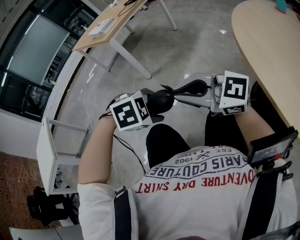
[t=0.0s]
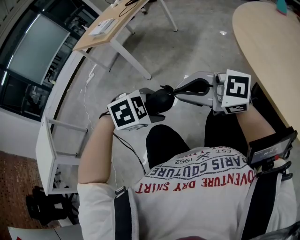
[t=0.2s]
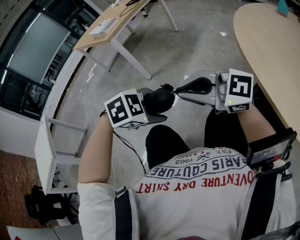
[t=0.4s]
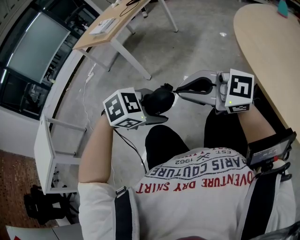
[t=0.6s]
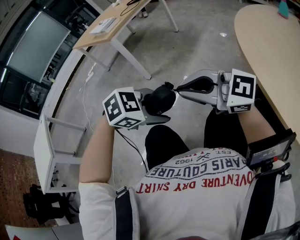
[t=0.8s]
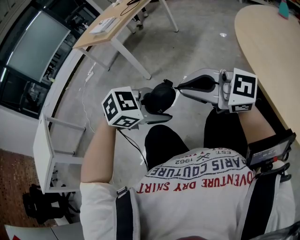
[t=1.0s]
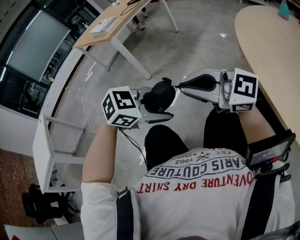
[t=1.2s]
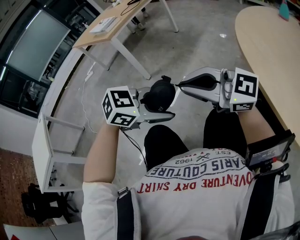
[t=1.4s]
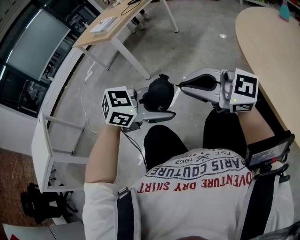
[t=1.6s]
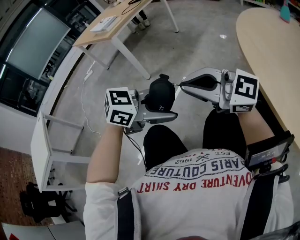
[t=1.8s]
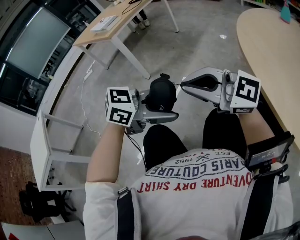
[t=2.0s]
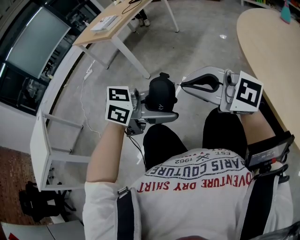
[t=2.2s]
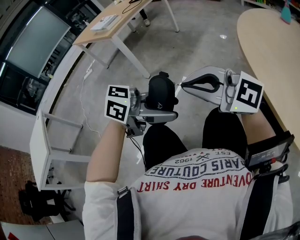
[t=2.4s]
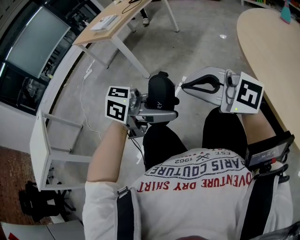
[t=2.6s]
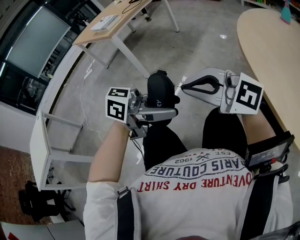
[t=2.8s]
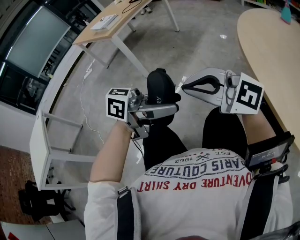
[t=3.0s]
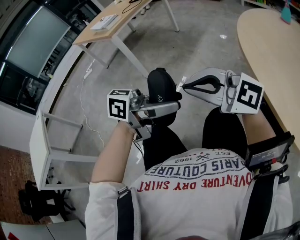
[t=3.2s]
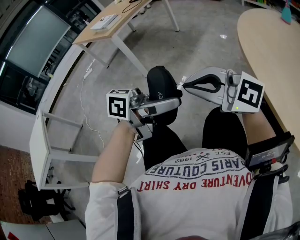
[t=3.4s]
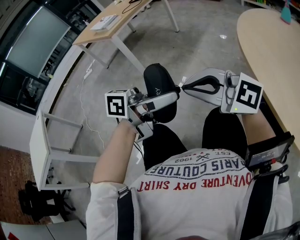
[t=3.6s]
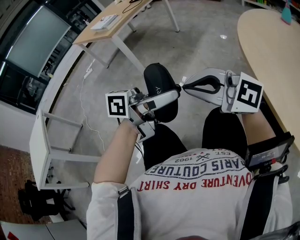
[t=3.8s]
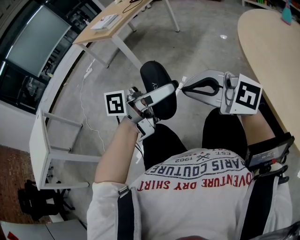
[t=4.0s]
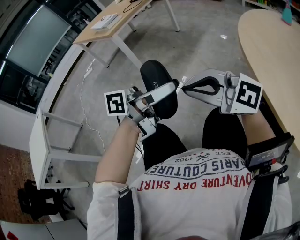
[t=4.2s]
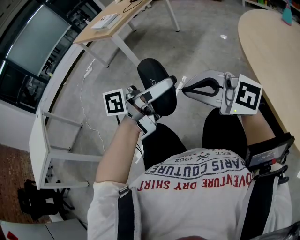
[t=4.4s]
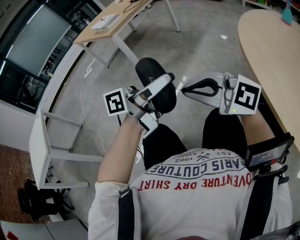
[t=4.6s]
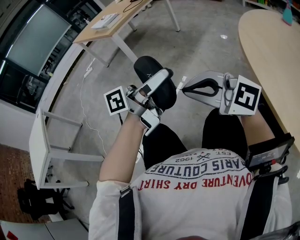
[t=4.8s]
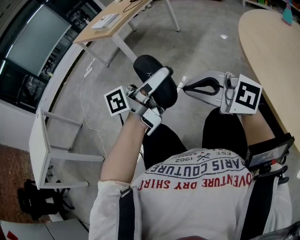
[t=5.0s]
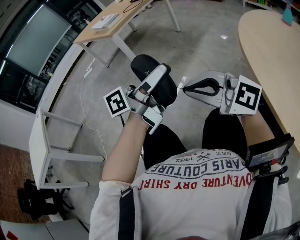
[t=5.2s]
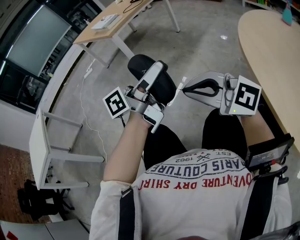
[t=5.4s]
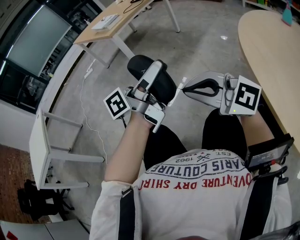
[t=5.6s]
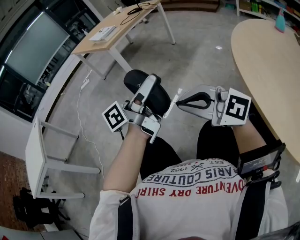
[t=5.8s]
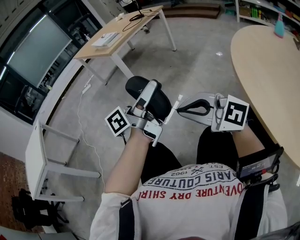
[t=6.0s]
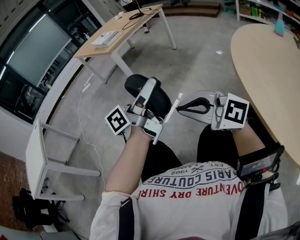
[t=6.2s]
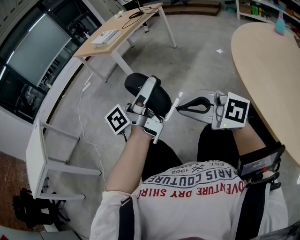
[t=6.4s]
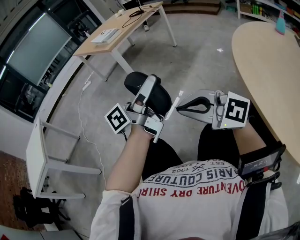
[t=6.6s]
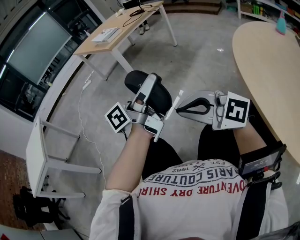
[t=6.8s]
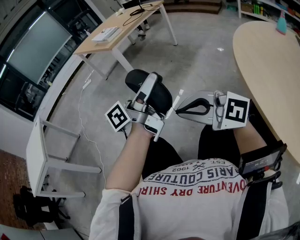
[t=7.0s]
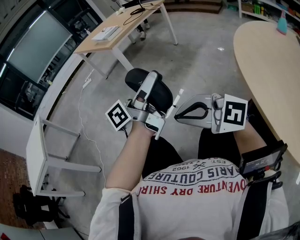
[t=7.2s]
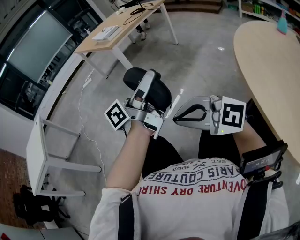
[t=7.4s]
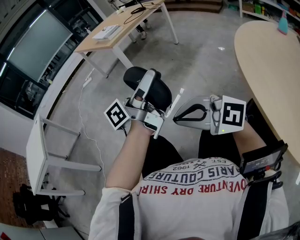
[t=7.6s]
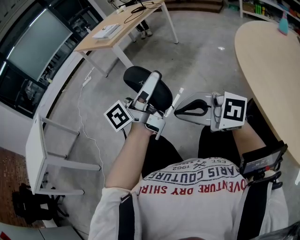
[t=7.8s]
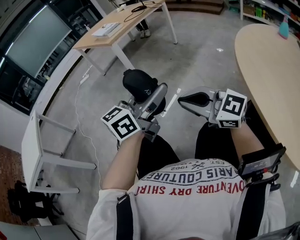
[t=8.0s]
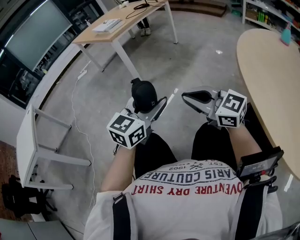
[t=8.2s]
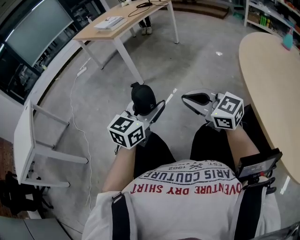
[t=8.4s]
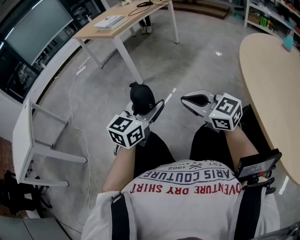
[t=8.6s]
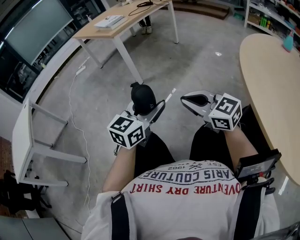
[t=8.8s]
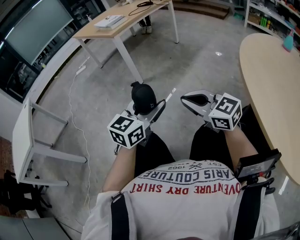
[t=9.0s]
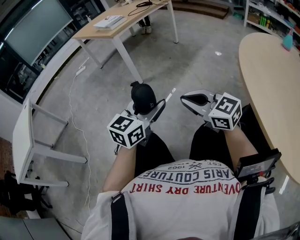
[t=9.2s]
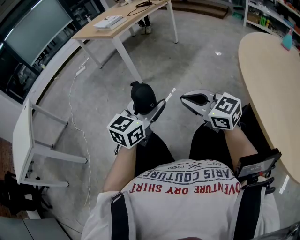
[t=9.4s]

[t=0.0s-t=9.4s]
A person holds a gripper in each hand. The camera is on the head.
t=0.0s to t=1.6s: The left gripper is displaced upward by some 5 cm, and tips its fingers upward by about 40 degrees.
t=1.6s to t=3.2s: The left gripper tips its fingers upward by approximately 30 degrees.
t=3.2s to t=4.8s: The left gripper changes place by about 10 cm, and turns by about 30 degrees.
t=4.8s to t=6.2s: The grippers make only small movements.
t=6.2s to t=7.8s: The grippers make only small movements.
t=7.8s to t=9.4s: The right gripper heads forward and downward, covering approximately 10 cm, and changes its angle by about 30 degrees. Meanwhile the left gripper goes approximately 10 cm downward, and twists some 50 degrees clockwise, seen from behind.

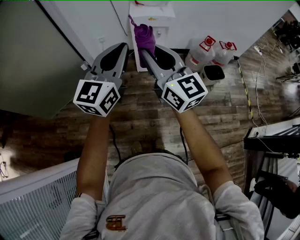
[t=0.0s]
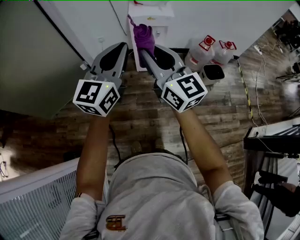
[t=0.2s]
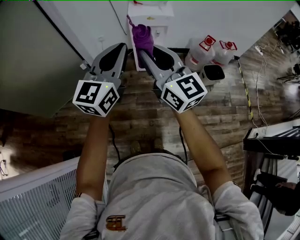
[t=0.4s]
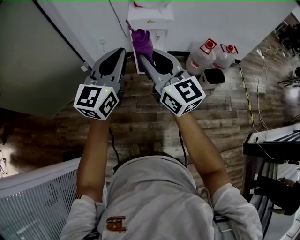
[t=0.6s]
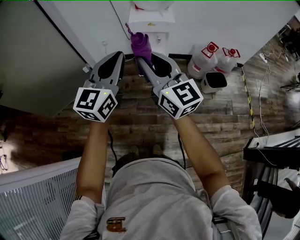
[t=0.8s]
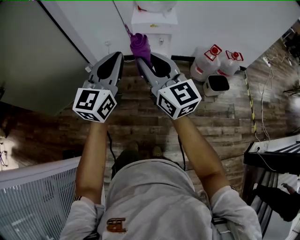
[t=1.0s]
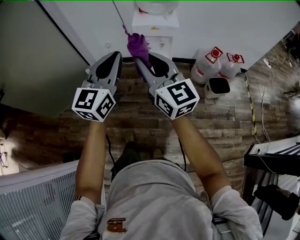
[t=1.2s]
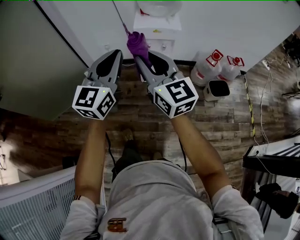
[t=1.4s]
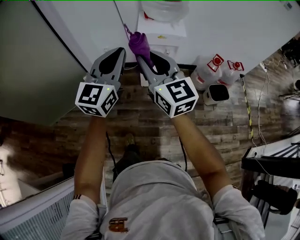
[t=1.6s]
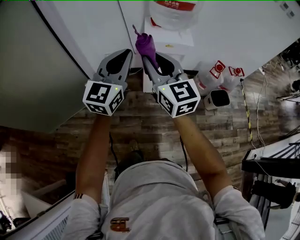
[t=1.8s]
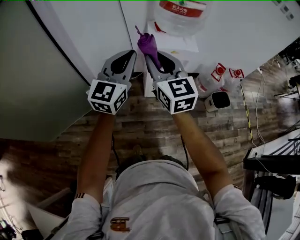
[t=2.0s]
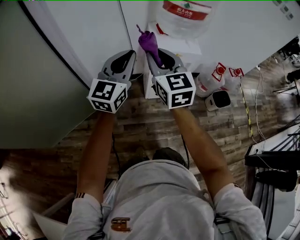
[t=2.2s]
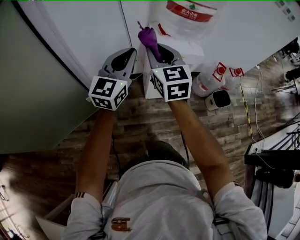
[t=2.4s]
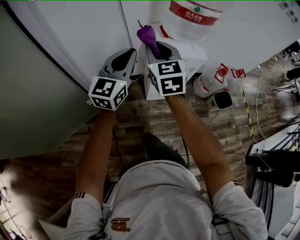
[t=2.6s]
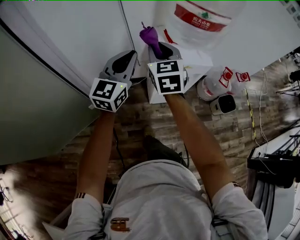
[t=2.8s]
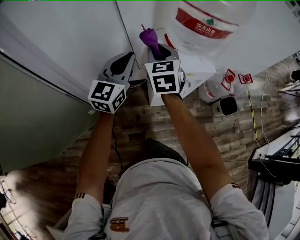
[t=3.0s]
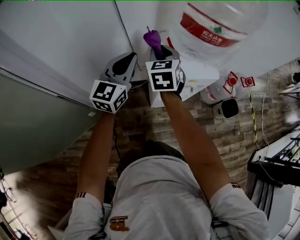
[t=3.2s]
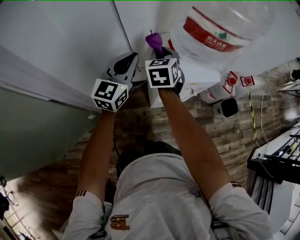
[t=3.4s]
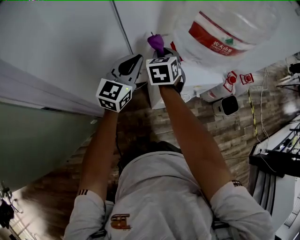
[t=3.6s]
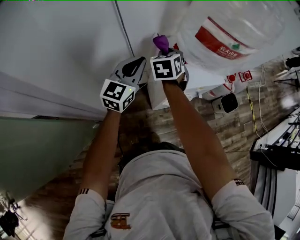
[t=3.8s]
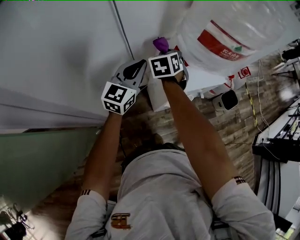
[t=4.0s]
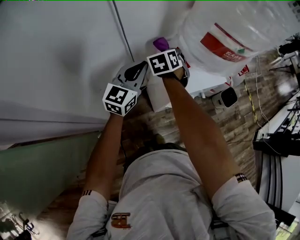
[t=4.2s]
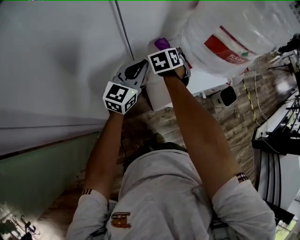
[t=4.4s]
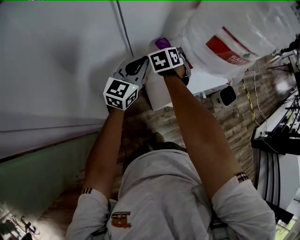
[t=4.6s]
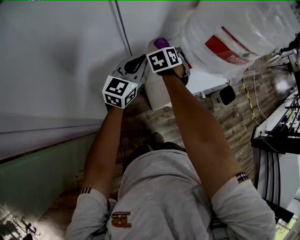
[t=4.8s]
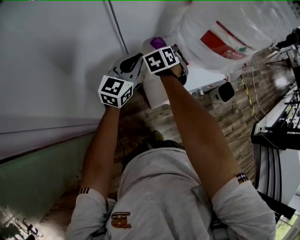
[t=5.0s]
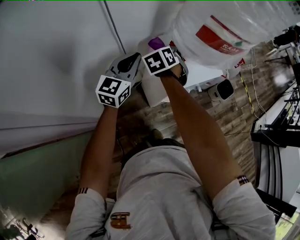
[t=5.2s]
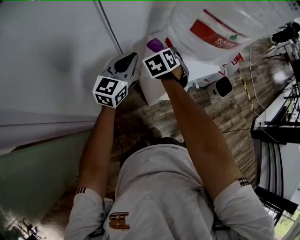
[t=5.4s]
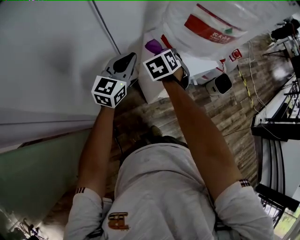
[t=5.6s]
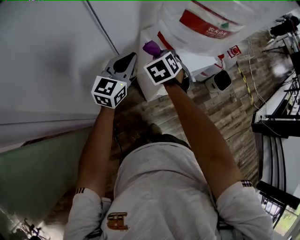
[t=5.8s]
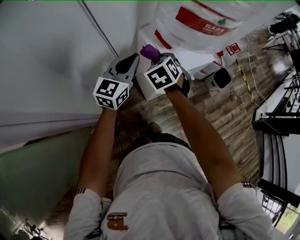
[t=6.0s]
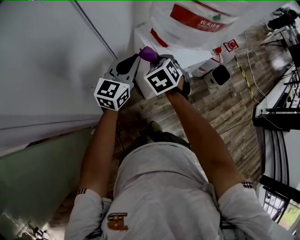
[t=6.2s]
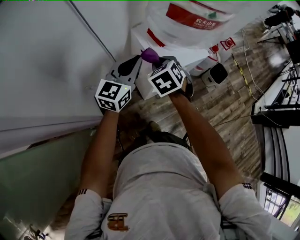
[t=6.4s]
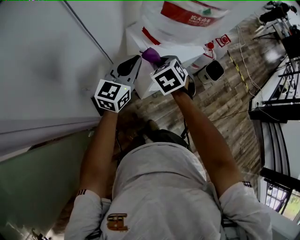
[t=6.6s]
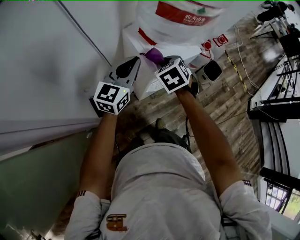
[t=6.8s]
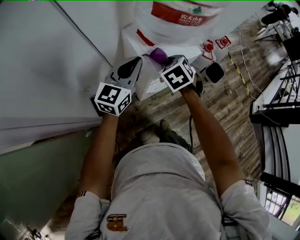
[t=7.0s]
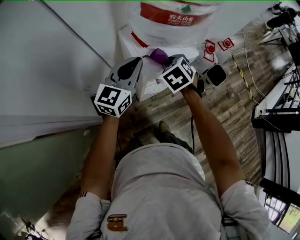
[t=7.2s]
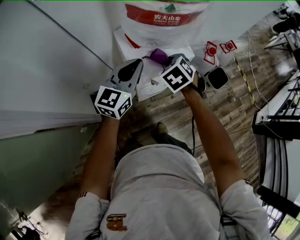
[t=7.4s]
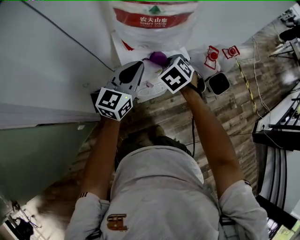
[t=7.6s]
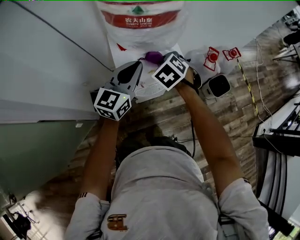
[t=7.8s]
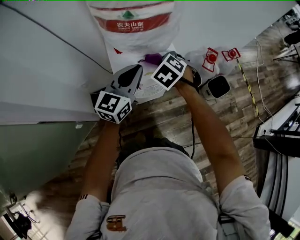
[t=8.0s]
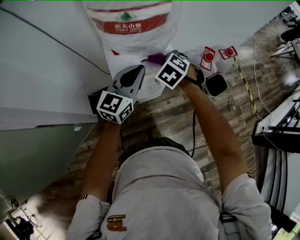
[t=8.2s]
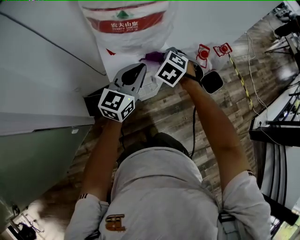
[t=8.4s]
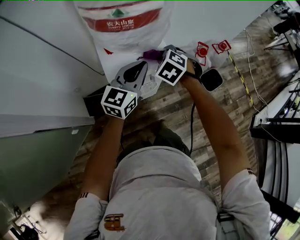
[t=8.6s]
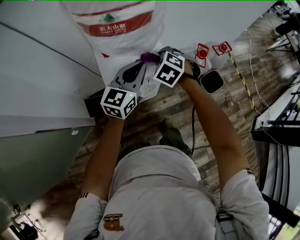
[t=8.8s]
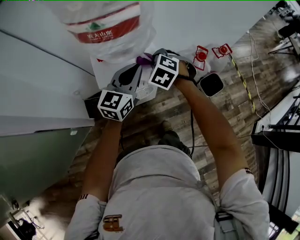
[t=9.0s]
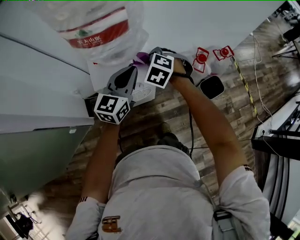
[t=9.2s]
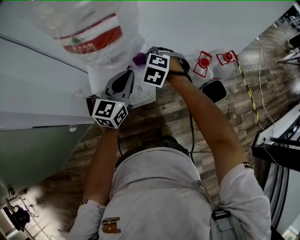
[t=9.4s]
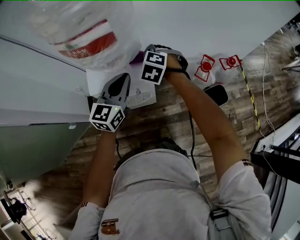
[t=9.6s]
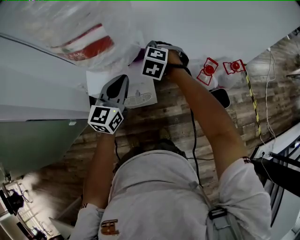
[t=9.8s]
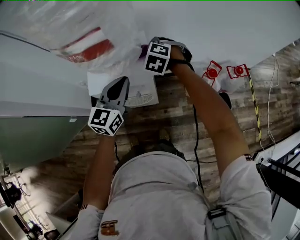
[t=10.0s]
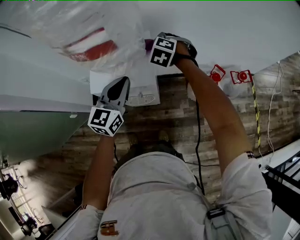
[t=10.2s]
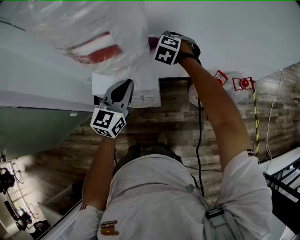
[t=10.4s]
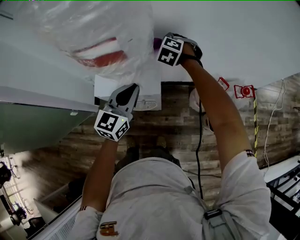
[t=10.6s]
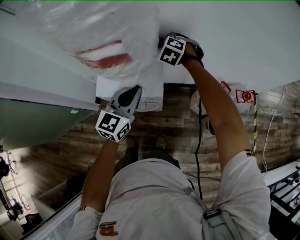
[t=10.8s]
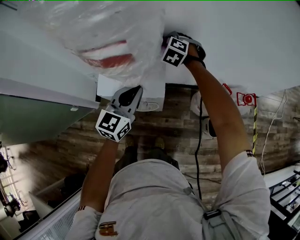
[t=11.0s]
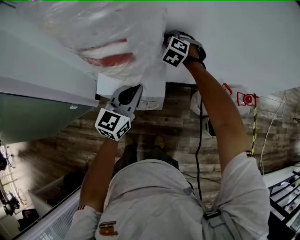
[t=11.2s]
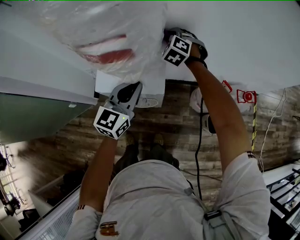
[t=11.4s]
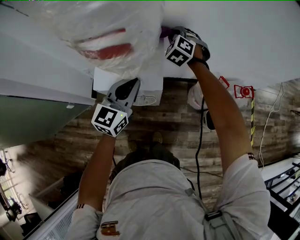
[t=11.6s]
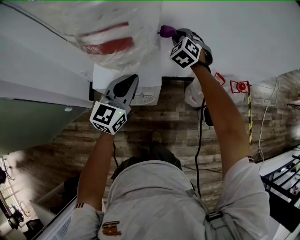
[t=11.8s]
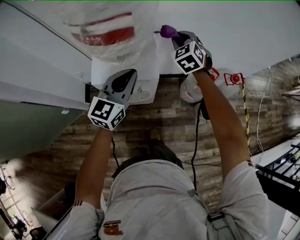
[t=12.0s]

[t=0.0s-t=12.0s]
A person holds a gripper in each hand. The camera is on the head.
t=0.0s to t=1.6s: The two grippers go approximately 15 cm forward.
t=1.6s to t=3.0s: The left gripper goes about 35 cm forward and to the left; the right gripper travels forward by approximately 40 cm, and swivels roughly 40 degrees.
t=3.0s to t=4.4s: The left gripper shifts by approximately 15 cm; the right gripper shifts by roughly 25 cm, and rotates roughly 40 degrees.
t=4.4s to t=6.0s: The left gripper shifts about 5 cm to the right; the right gripper shifts about 15 cm backward and to the right.
t=6.0s to t=7.6s: Both grippers move to the right, approximately 20 cm.
t=7.6s to t=9.0s: The left gripper heads to the right, covering some 10 cm. Meanwhile the right gripper moves to the right, approximately 5 cm, and turns by approximately 20 degrees.
t=9.0s to t=10.4s: The left gripper shifts by about 5 cm, and swivels some 20 degrees, while the right gripper is displaced forward by some 20 cm, and changes its angle by roughly 20 degrees.
t=10.4s to t=12.0s: The right gripper goes roughly 10 cm upward and to the right, and changes its angle by about 30 degrees.

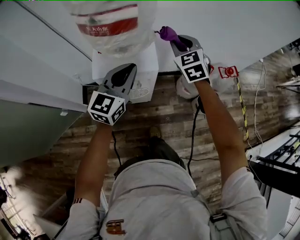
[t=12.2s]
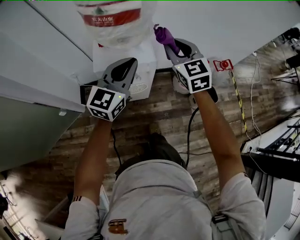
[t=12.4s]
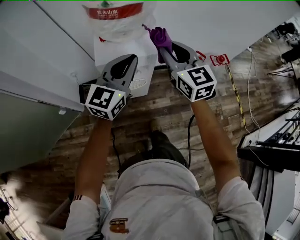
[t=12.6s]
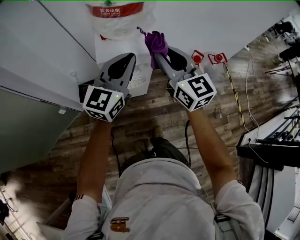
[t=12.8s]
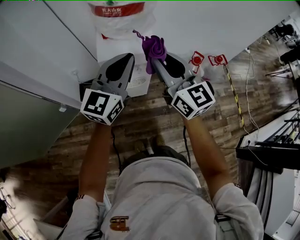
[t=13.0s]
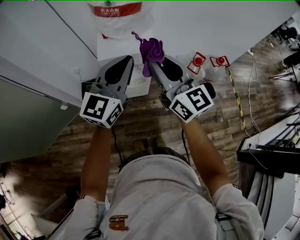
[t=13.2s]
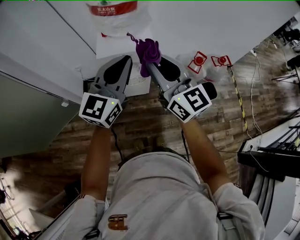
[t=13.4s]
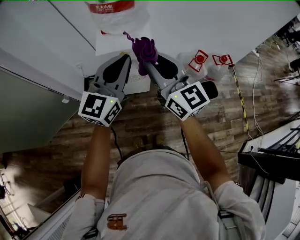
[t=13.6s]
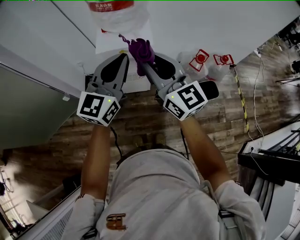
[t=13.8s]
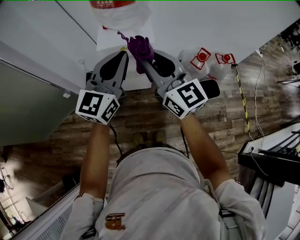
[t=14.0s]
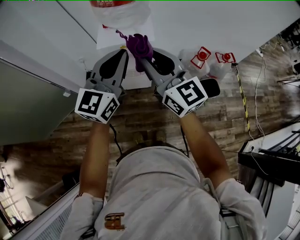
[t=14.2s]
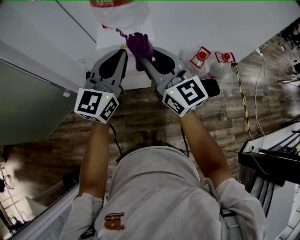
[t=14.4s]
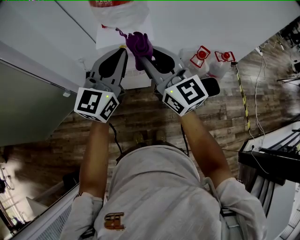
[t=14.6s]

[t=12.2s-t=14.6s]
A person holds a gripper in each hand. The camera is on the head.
t=12.2s to t=13.4s: The right gripper goes about 30 cm backward and upward, and angles its fingers upward, by approximately 30 degrees. The left gripper goes about 20 cm backward and upward.
t=13.4s to t=14.6s: There are only small adjustments of the grippers.
